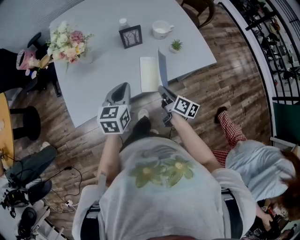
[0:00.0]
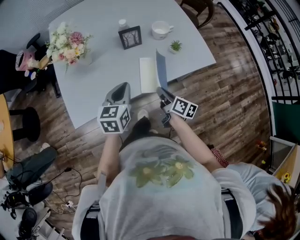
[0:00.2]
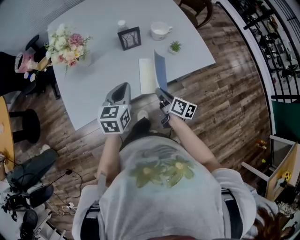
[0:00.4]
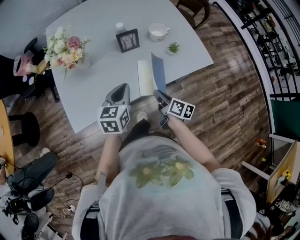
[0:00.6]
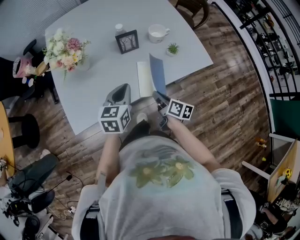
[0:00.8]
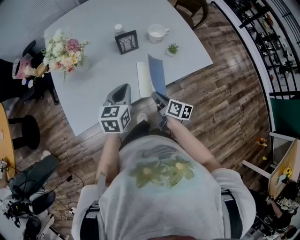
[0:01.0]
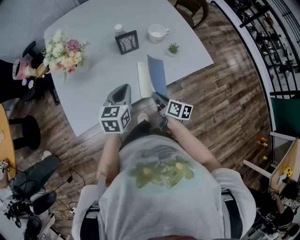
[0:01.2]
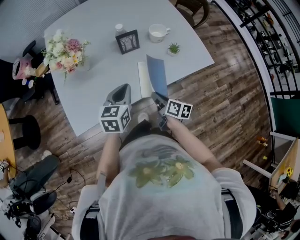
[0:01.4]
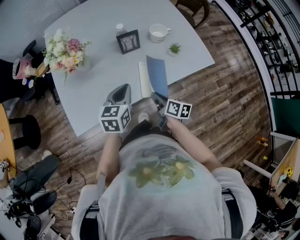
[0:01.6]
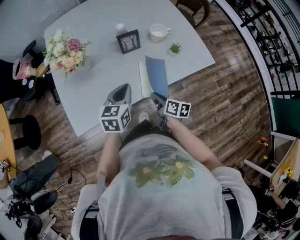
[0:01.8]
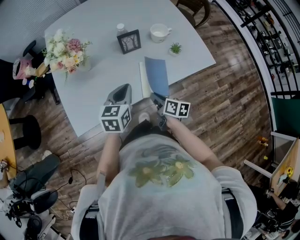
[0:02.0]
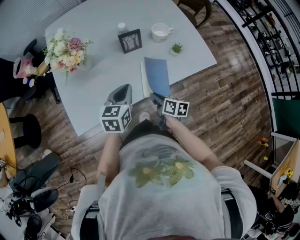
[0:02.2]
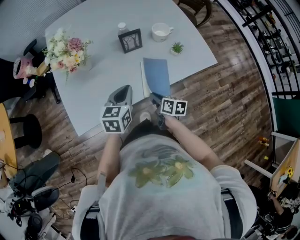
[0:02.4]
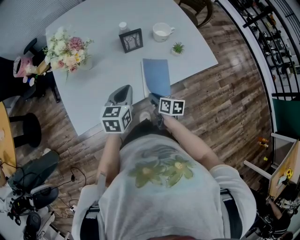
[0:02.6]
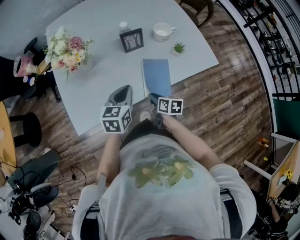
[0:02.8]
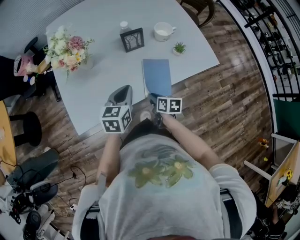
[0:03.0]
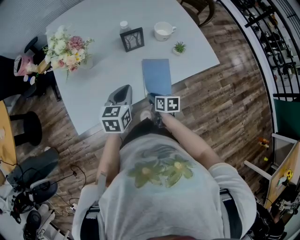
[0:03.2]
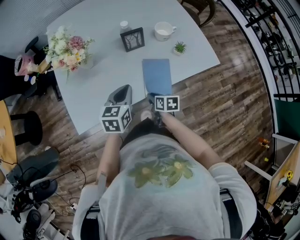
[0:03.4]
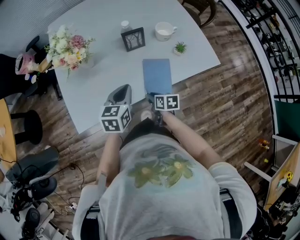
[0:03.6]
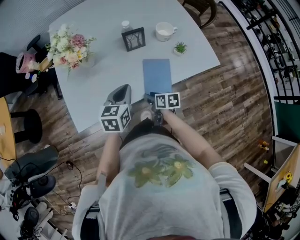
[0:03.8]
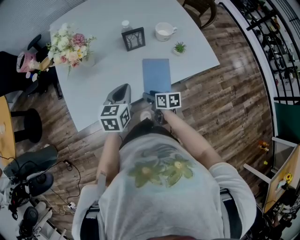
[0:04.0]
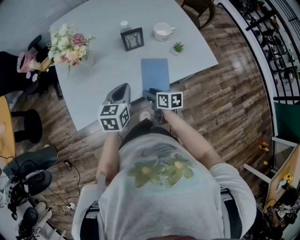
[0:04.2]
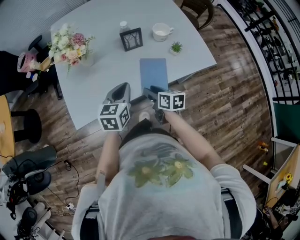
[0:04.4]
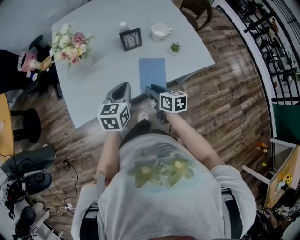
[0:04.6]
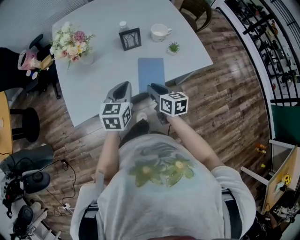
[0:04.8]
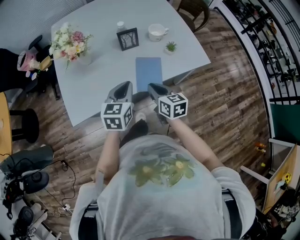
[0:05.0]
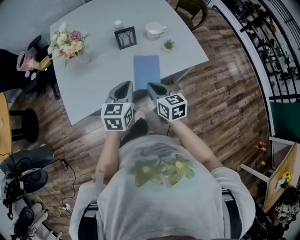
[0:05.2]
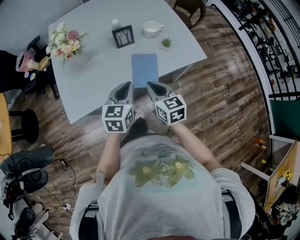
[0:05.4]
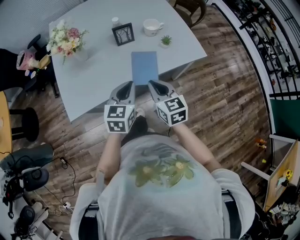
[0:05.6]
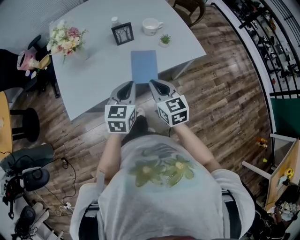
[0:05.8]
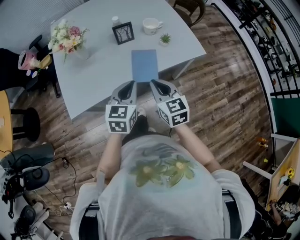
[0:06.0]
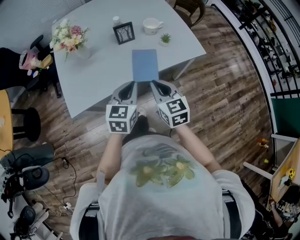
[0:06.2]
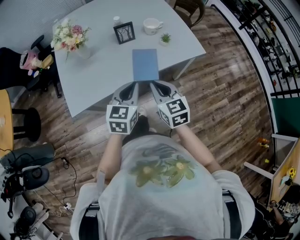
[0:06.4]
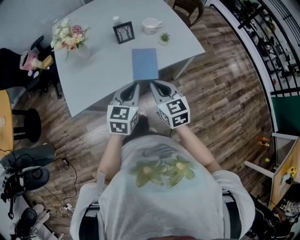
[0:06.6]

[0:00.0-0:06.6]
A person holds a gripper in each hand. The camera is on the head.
0:00.0 to 0:01.6: The grippers stay close to where they were, moving slightly.
0:01.6 to 0:03.2: The right gripper heads downward, covering some 5 cm, and turns by some 20 degrees.
0:03.2 to 0:05.0: The right gripper is displaced upward by approximately 15 cm, swivels roughly 30 degrees, and opens, then closes once more; the left gripper travels upward by about 5 cm.
0:05.0 to 0:06.6: The right gripper heads backward and upward, covering roughly 10 cm, and swivels approximately 20 degrees; the left gripper goes approximately 10 cm backward.

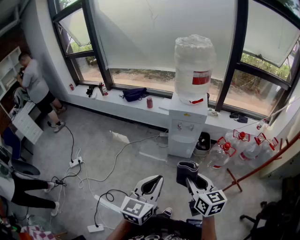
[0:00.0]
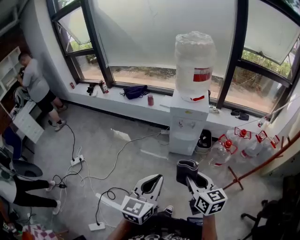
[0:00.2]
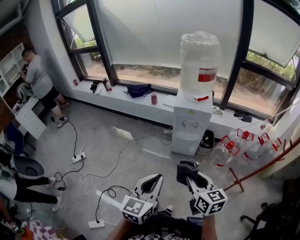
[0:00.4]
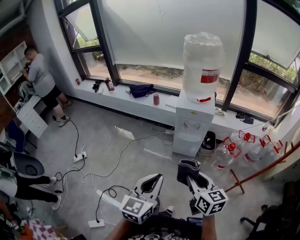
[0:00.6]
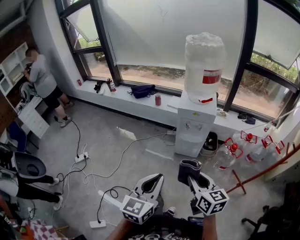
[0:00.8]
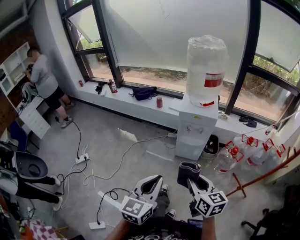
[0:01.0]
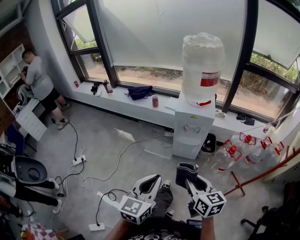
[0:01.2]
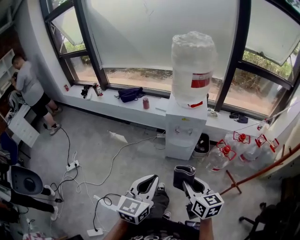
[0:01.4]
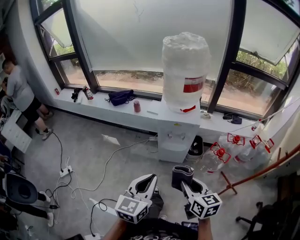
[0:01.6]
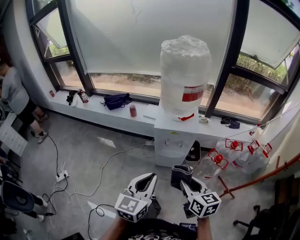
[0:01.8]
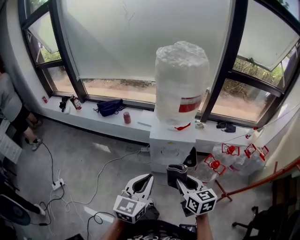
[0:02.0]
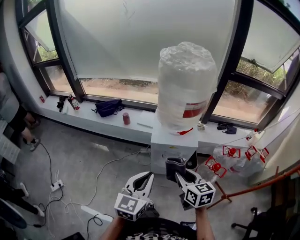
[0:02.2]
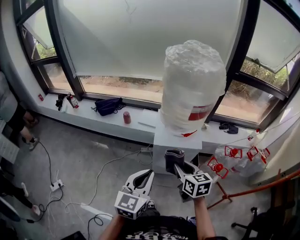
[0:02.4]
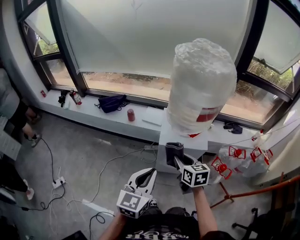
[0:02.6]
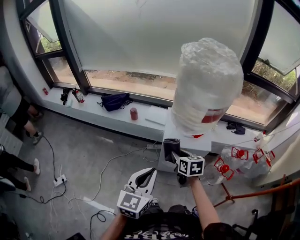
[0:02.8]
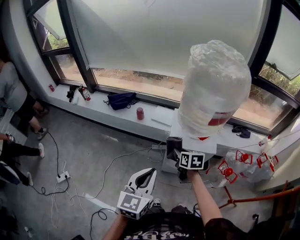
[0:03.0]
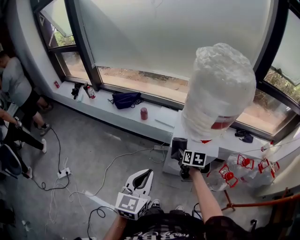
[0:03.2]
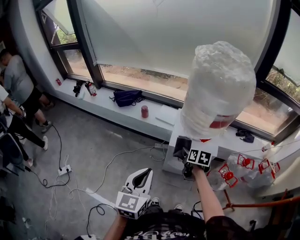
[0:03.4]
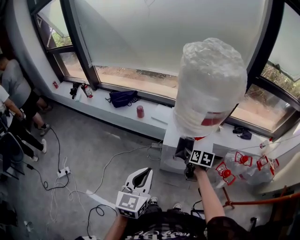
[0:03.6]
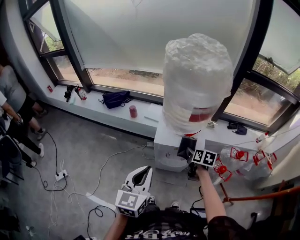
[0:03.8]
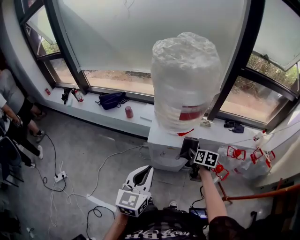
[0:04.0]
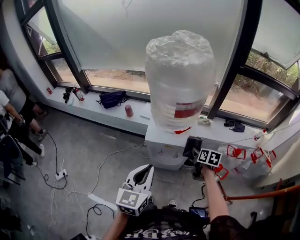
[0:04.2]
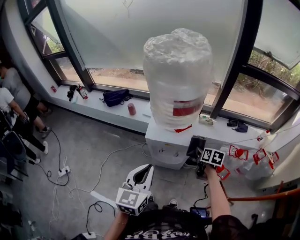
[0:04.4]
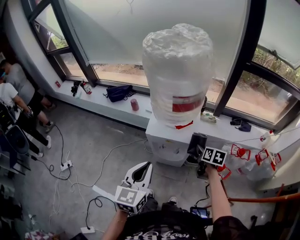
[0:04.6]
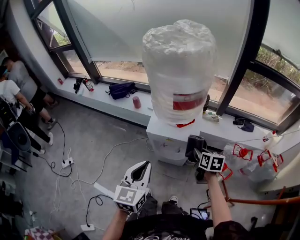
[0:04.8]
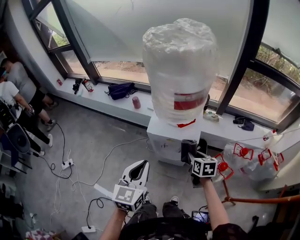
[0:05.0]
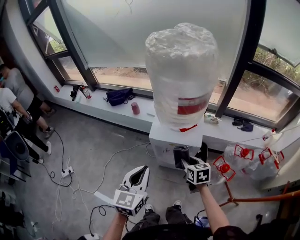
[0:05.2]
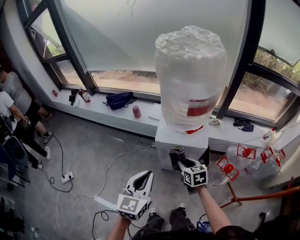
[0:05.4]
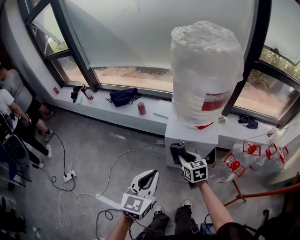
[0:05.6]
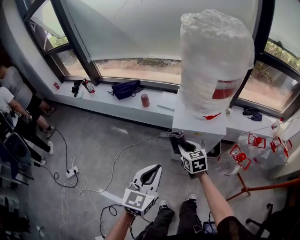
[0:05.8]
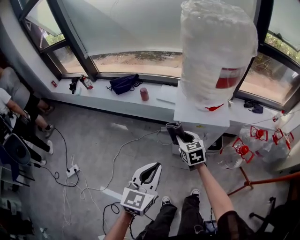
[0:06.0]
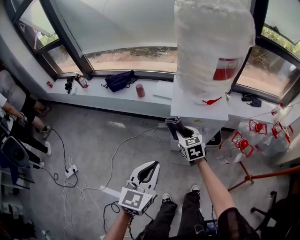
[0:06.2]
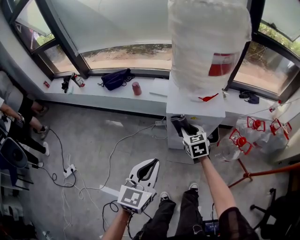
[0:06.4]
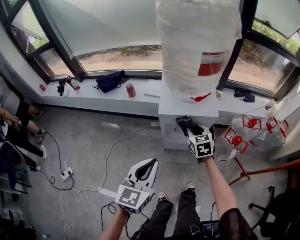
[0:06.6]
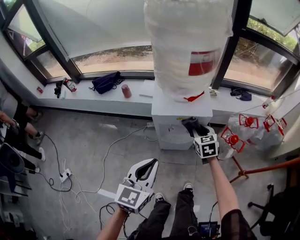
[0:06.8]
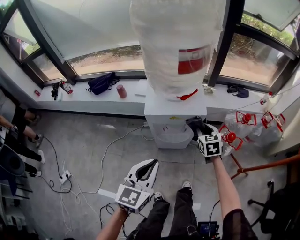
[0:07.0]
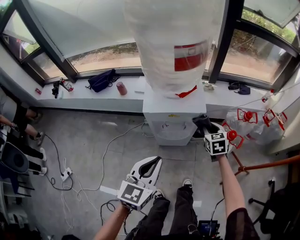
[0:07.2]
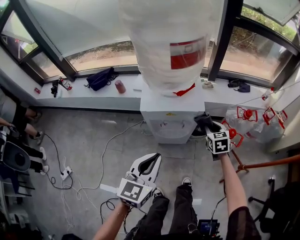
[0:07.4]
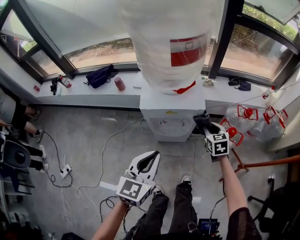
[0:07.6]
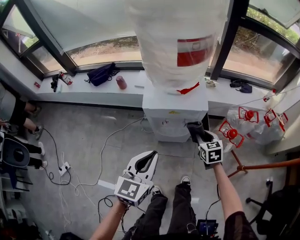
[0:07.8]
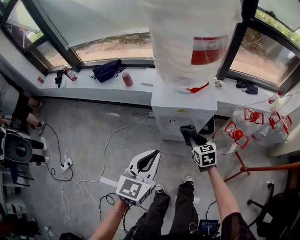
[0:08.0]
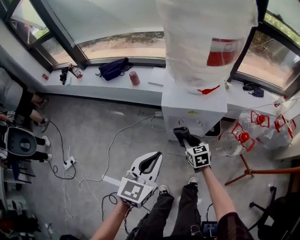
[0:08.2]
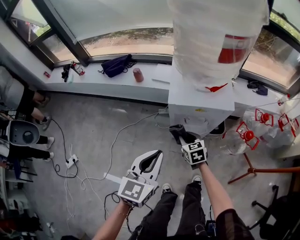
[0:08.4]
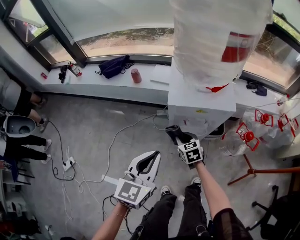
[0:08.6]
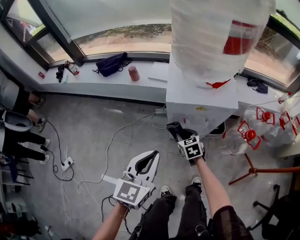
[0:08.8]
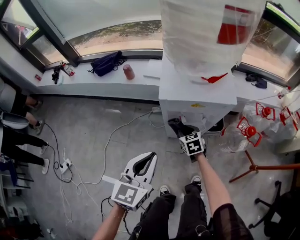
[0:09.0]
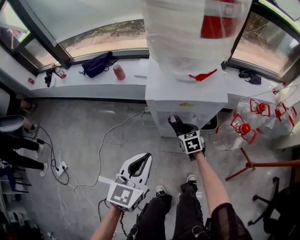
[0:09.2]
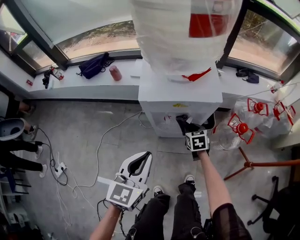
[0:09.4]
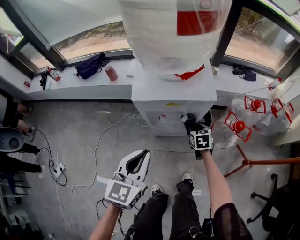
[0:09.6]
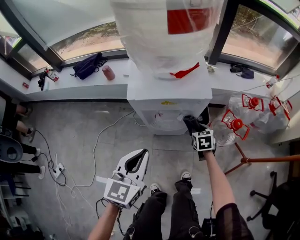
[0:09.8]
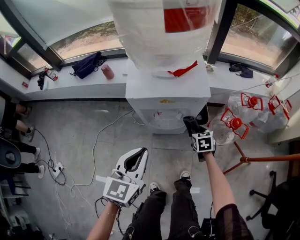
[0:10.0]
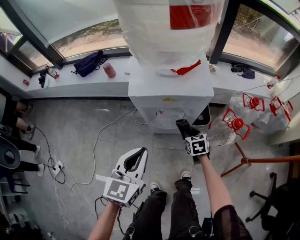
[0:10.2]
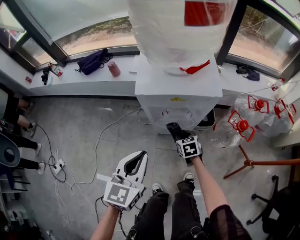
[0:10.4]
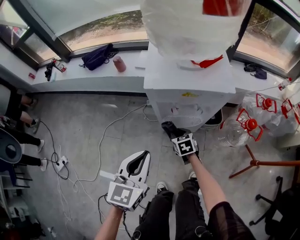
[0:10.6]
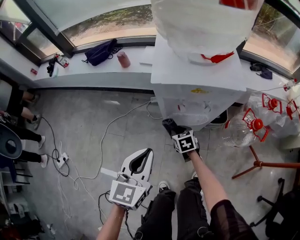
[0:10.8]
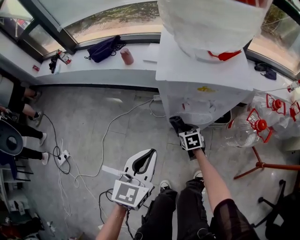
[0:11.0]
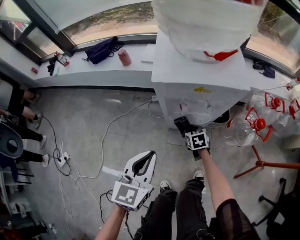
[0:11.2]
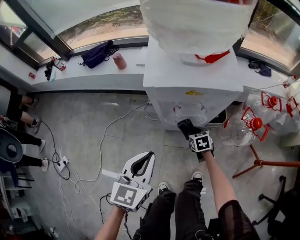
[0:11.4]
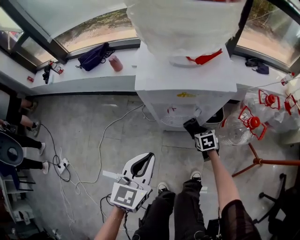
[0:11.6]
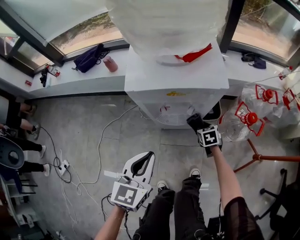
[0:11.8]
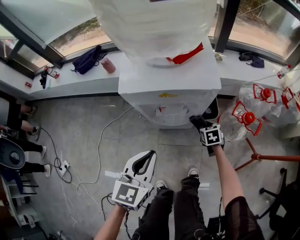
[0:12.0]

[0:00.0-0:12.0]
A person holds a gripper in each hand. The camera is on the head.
0:00.0 to 0:01.6: The grippers both shift forward by approximately 15 cm.
0:01.6 to 0:03.0: The right gripper heads forward, covering about 40 cm, while the left gripper moves forward, roughly 25 cm.
0:03.0 to 0:04.4: The right gripper shifts approximately 30 cm to the right, while the left gripper goes roughly 15 cm to the right.
0:04.4 to 0:06.0: The left gripper moves to the left and downward, approximately 15 cm, while the right gripper goes some 30 cm to the left, and changes its angle by roughly 40 degrees.
0:06.0 to 0:07.6: The left gripper goes some 15 cm to the right, while the right gripper shifts about 30 cm to the right.
0:07.6 to 0:09.0: The left gripper is displaced to the left and downward by some 15 cm. Meanwhile the right gripper goes approximately 30 cm to the left and downward.
0:09.0 to 0:10.4: The left gripper ends up some 5 cm from where it was. The right gripper shifts some 10 cm to the right and downward.
0:10.4 to 0:12.0: The right gripper goes some 15 cm to the right and downward. Meanwhile the left gripper shifts approximately 10 cm to the right and downward.

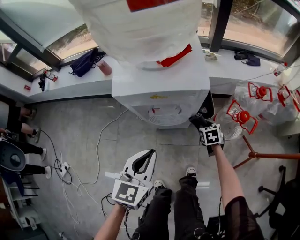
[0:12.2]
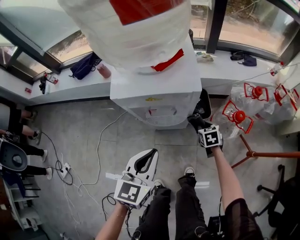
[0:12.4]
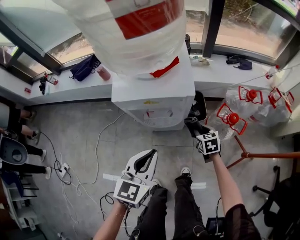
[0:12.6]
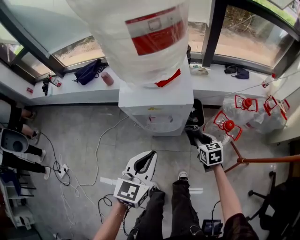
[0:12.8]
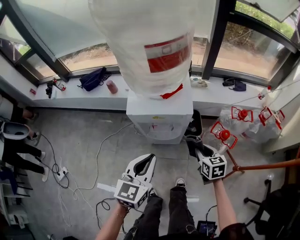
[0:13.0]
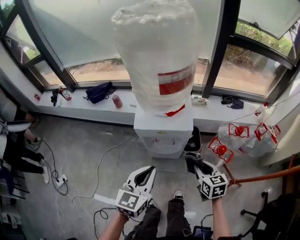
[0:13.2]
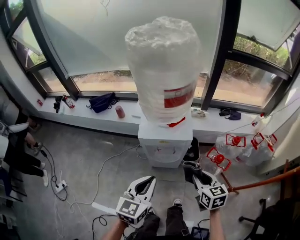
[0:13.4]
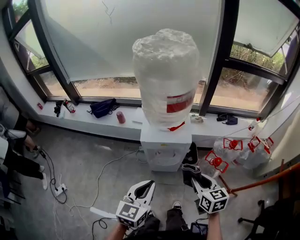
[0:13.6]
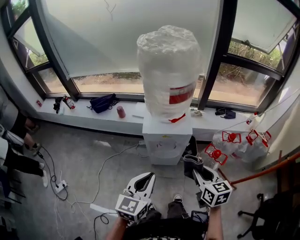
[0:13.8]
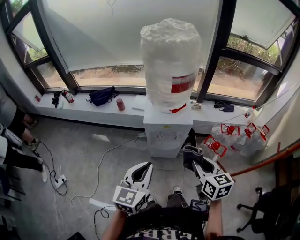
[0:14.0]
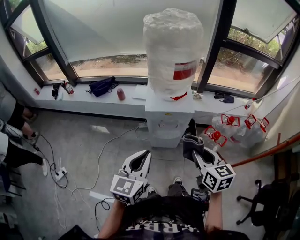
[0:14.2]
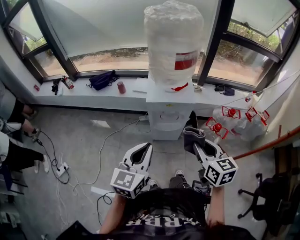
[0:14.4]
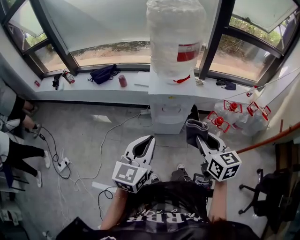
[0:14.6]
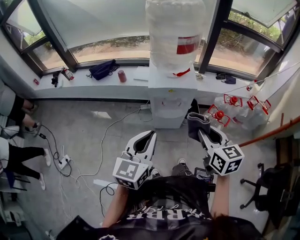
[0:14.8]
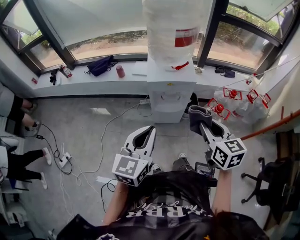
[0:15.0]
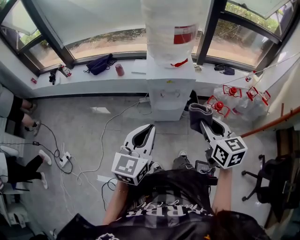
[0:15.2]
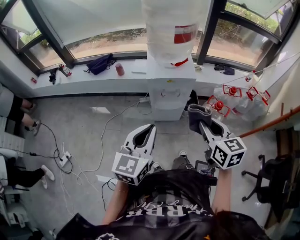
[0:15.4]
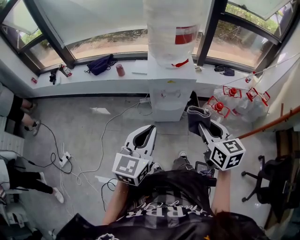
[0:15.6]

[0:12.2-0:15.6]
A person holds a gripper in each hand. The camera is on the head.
0:12.2 to 0:13.8: The right gripper shifts approximately 50 cm upward and backward, and swivels roughly 30 degrees, while the left gripper travels upward and backward by about 30 cm.
0:13.8 to 0:15.6: Both grippers travel together backward, some 10 cm.

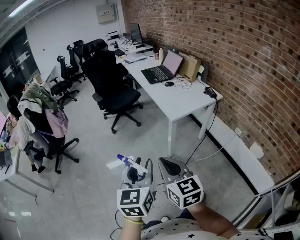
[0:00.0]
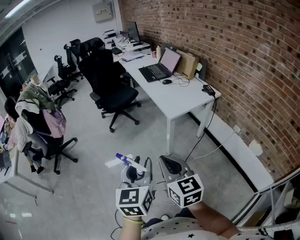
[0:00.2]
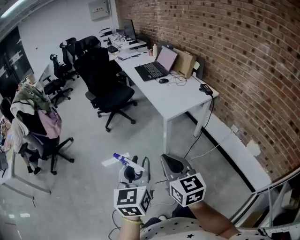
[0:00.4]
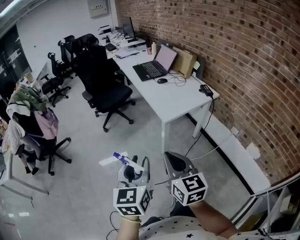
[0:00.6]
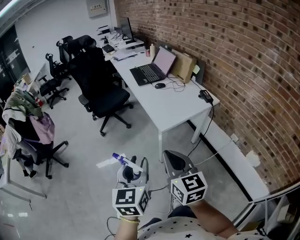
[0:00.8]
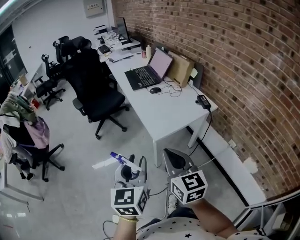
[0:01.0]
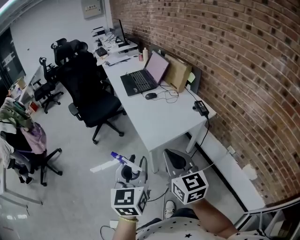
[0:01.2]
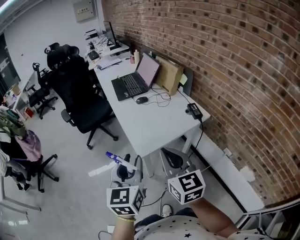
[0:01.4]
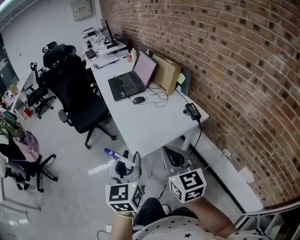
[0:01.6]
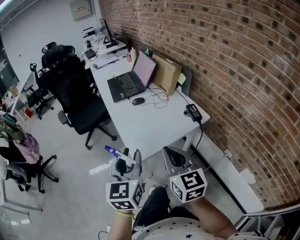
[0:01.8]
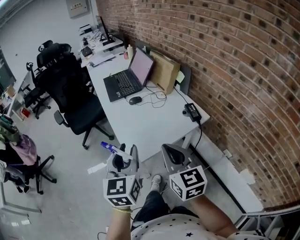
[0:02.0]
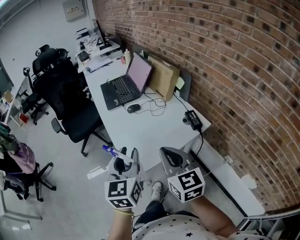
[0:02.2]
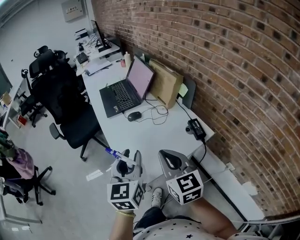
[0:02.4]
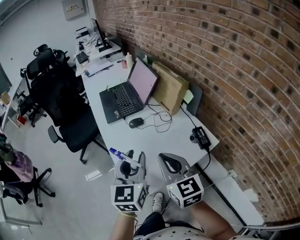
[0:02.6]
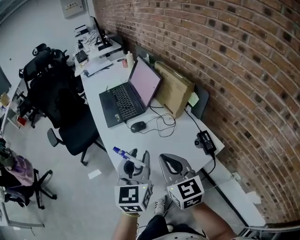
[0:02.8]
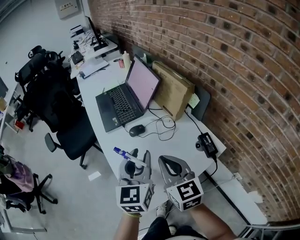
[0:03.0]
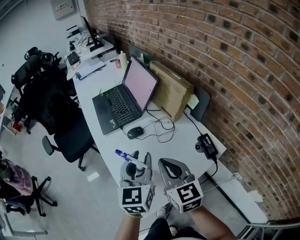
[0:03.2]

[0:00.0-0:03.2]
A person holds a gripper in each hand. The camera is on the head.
0:00.0 to 0:01.6: Both grippers move forward and to the right, some 40 cm.
0:01.6 to 0:03.2: The two grippers go approximately 30 cm forward.
